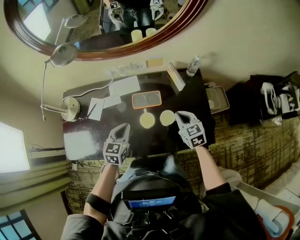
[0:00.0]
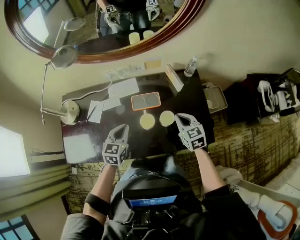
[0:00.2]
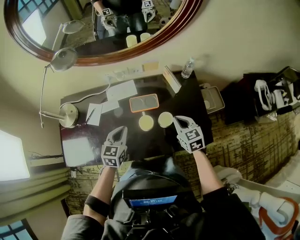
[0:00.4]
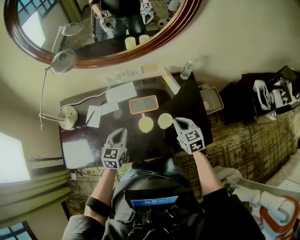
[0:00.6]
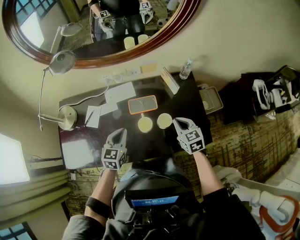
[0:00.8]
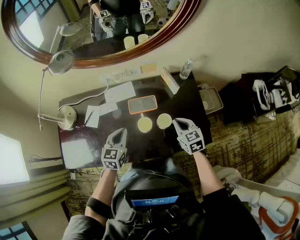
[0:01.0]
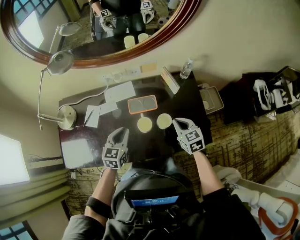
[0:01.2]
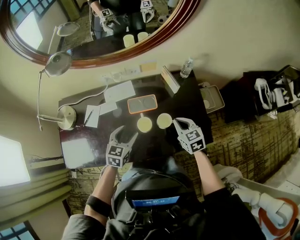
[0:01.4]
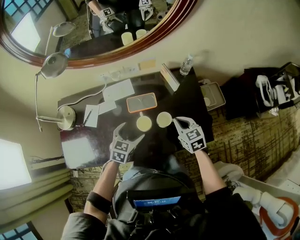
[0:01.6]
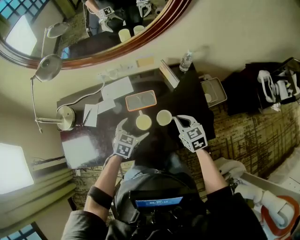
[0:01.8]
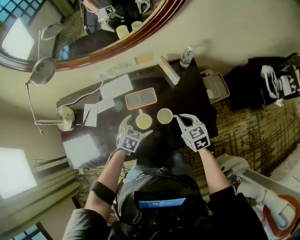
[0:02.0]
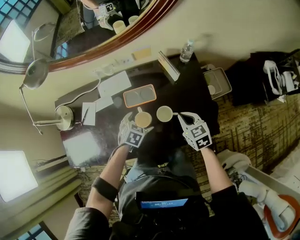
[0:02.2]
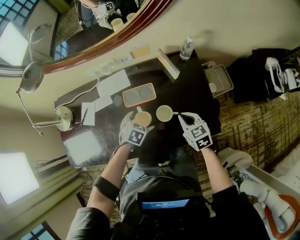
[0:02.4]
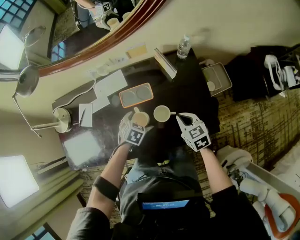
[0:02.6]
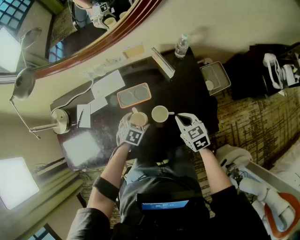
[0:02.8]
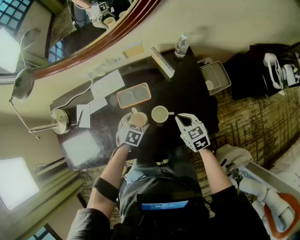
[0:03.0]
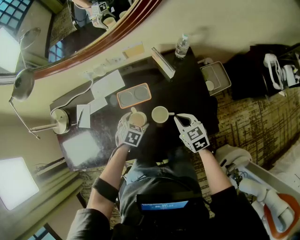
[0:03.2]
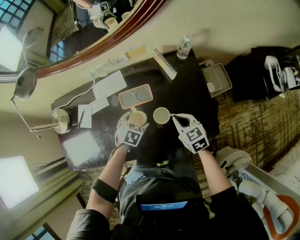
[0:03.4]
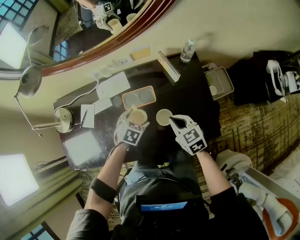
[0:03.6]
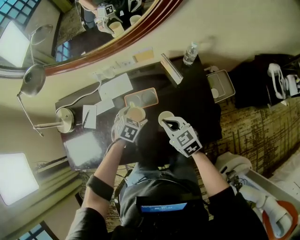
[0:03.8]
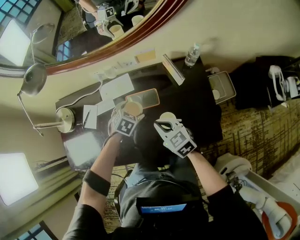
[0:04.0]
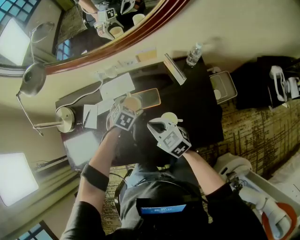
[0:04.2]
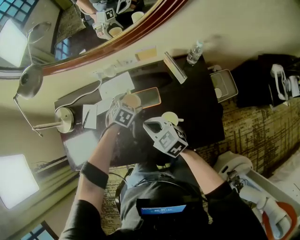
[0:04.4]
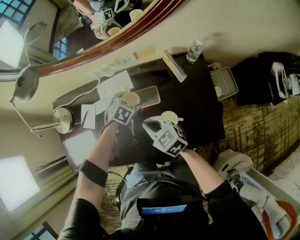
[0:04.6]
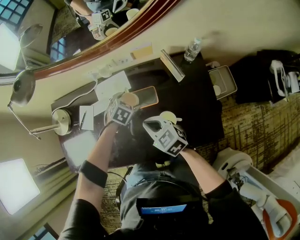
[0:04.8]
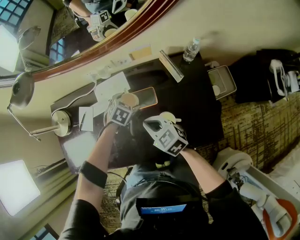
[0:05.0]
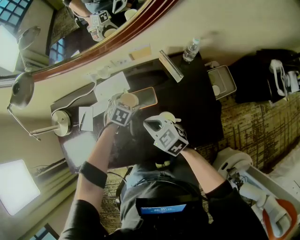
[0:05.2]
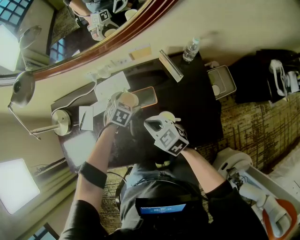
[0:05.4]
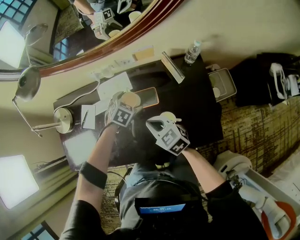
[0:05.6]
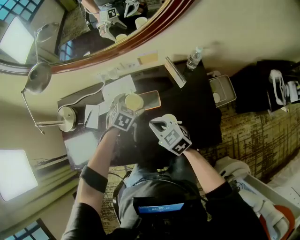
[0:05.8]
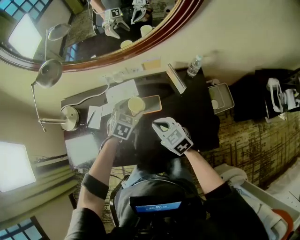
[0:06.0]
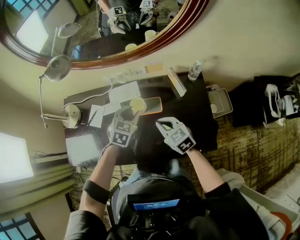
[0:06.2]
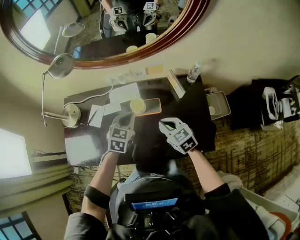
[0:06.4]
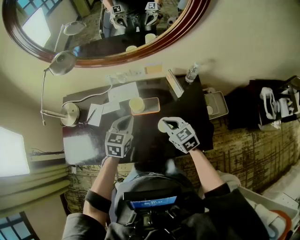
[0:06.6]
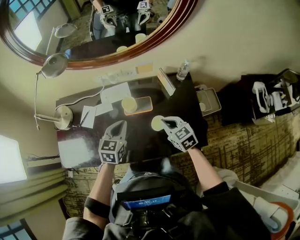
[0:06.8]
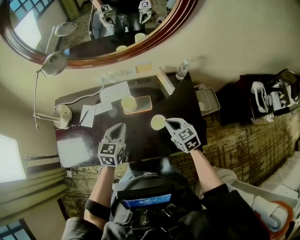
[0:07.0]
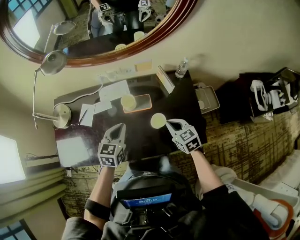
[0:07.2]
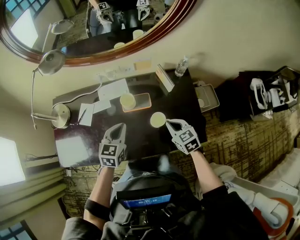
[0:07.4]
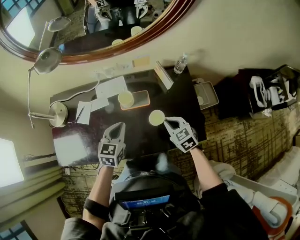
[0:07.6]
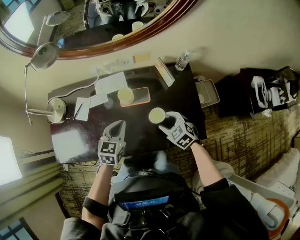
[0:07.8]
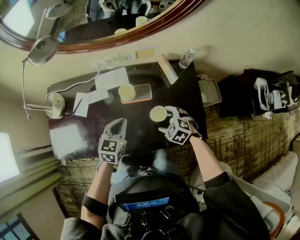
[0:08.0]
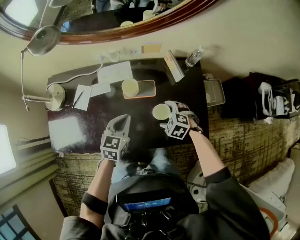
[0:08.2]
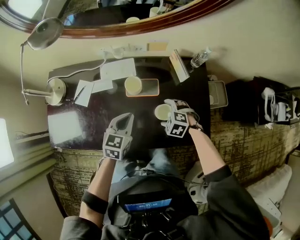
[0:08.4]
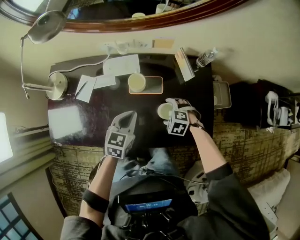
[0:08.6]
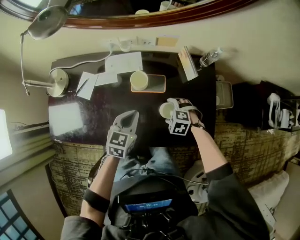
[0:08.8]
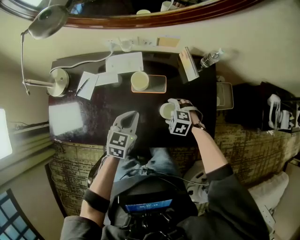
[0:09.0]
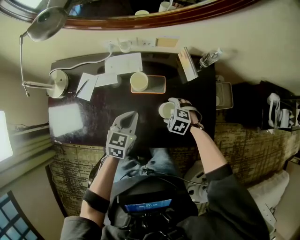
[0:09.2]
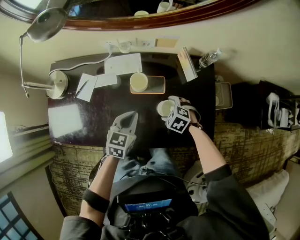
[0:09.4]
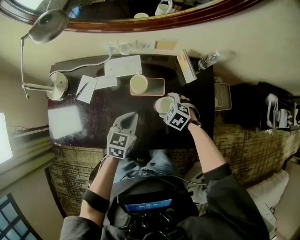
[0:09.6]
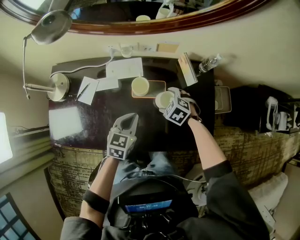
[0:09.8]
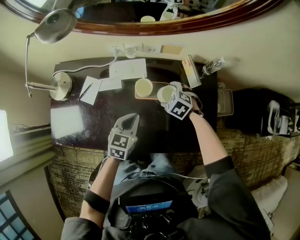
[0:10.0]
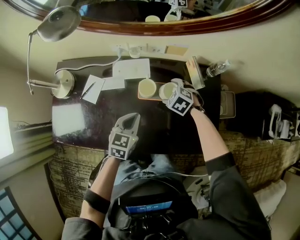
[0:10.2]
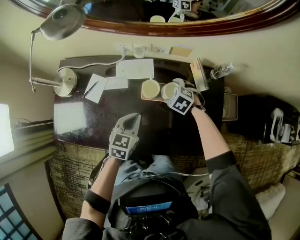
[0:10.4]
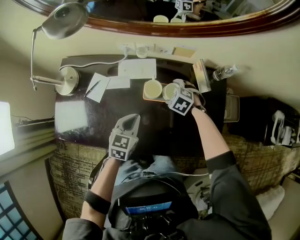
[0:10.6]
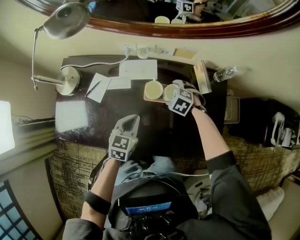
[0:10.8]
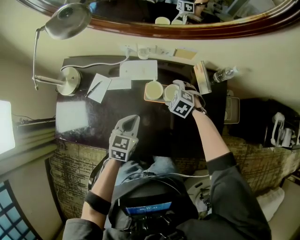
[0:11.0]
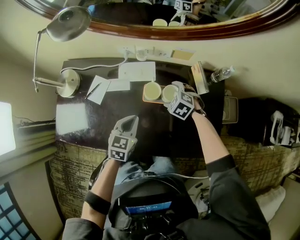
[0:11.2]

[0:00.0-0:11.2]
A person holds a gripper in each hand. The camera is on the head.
0:00.0 to 0:01.6: The left gripper goes about 5 cm to the right, and opens up.
0:01.6 to 0:03.2: The right gripper is displaced downward by roughly 5 cm. Meanwhile the left gripper moves downward and to the right, about 15 cm, and changes its angle by some 30 degrees.
0:03.2 to 0:04.8: The left gripper goes approximately 15 cm forward, while the right gripper goes approximately 20 cm to the left, and rotates some 20 degrees.
0:04.8 to 0:06.4: The right gripper is displaced to the right and upward by roughly 10 cm. The left gripper is displaced upward and backward by about 20 cm, changes its angle by roughly 30 degrees, and closes its fingers.
0:06.4 to 0:08.0: The left gripper goes about 5 cm backward; the right gripper moves downward, some 10 cm, changes its angle by about 40 degrees, and opens.
0:08.0 to 0:09.6: The right gripper moves some 10 cm.
0:09.6 to 0:11.2: The left gripper changes place by some 5 cm, while the right gripper shifts some 10 cm forward.

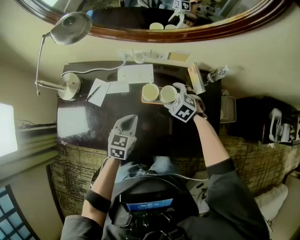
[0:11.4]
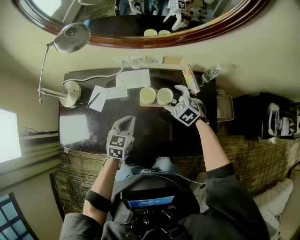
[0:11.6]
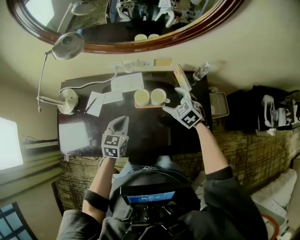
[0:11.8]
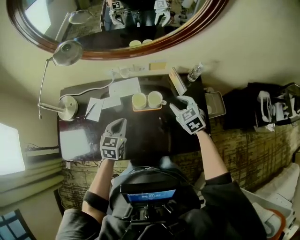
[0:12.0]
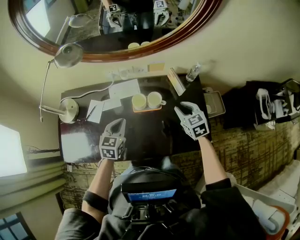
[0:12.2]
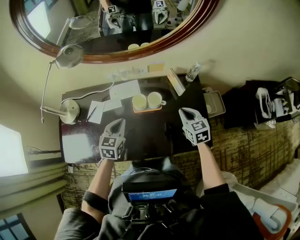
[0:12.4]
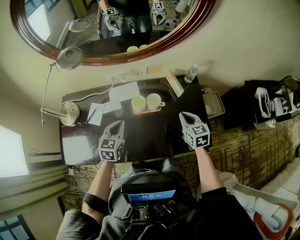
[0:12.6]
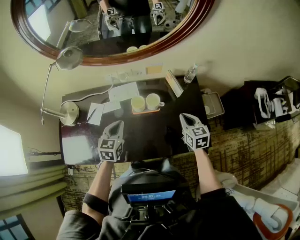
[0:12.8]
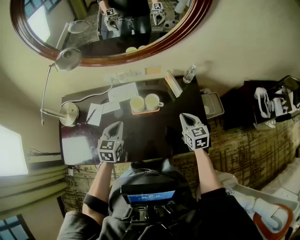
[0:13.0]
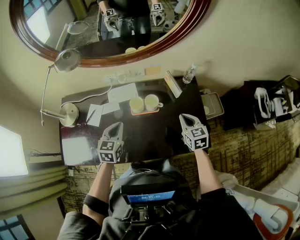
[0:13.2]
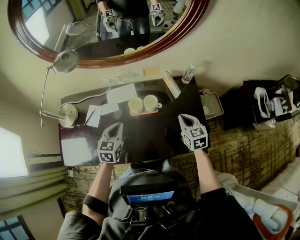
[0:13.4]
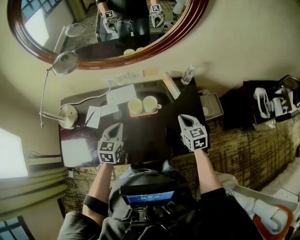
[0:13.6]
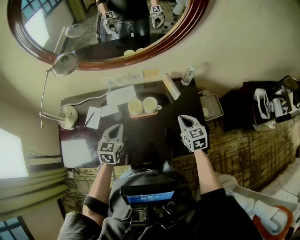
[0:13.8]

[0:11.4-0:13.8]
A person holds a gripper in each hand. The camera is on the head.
0:11.4 to 0:12.6: The right gripper shifts some 20 cm backward, upward and to the right, rotates around the line of its fingers by roughly 50 degrees, clockwise from behind, and closes its fingers. Meanwhile the left gripper moves upward, approximately 5 cm.
0:12.6 to 0:13.8: There are only small adjustments of the grippers.

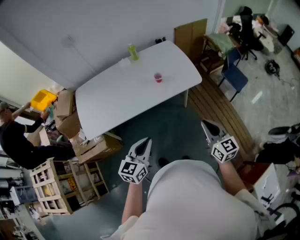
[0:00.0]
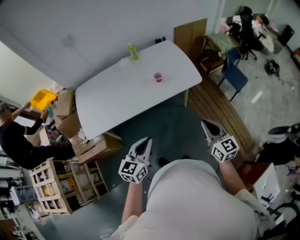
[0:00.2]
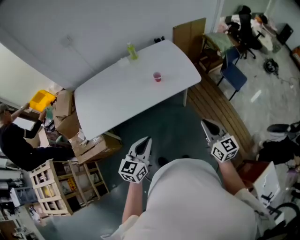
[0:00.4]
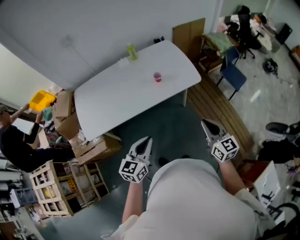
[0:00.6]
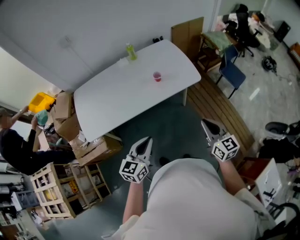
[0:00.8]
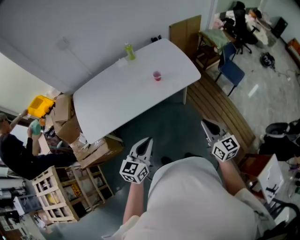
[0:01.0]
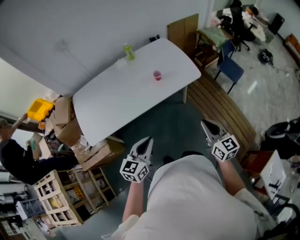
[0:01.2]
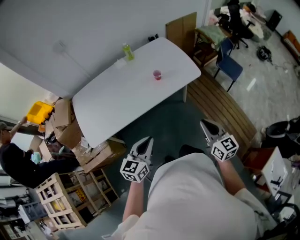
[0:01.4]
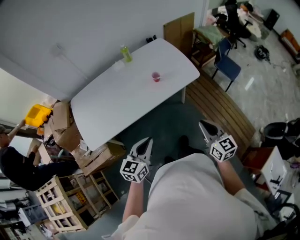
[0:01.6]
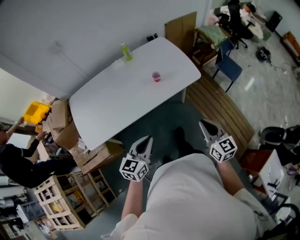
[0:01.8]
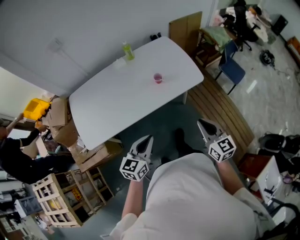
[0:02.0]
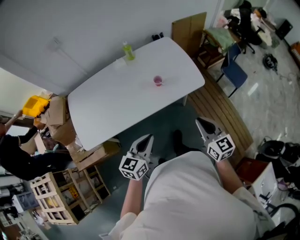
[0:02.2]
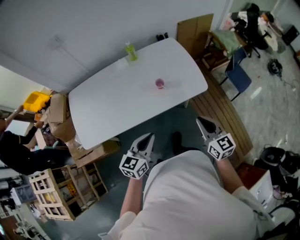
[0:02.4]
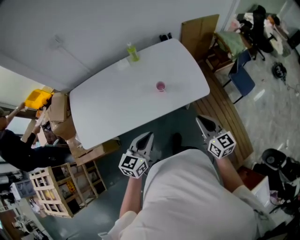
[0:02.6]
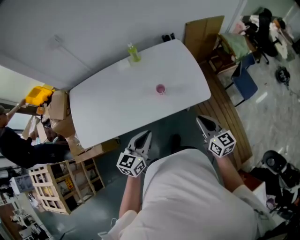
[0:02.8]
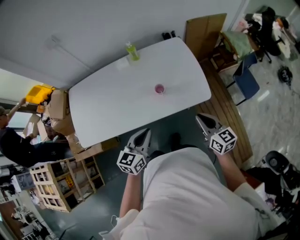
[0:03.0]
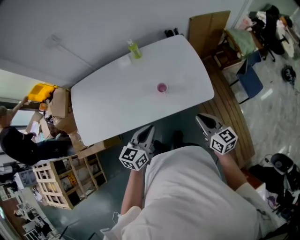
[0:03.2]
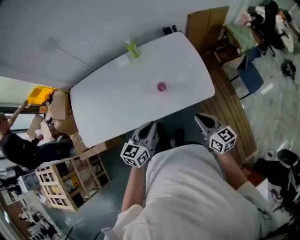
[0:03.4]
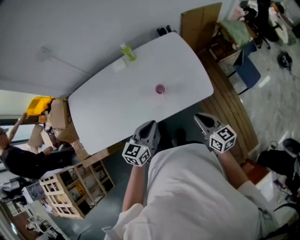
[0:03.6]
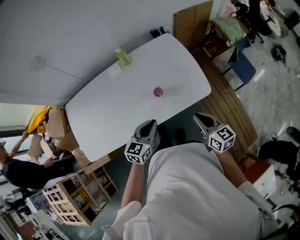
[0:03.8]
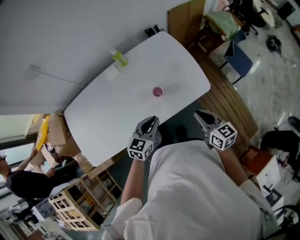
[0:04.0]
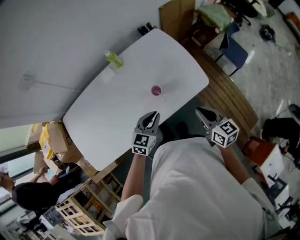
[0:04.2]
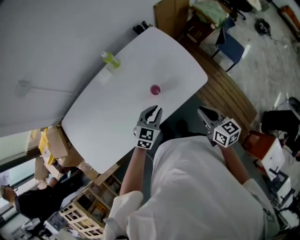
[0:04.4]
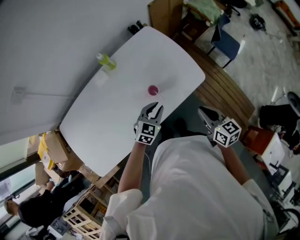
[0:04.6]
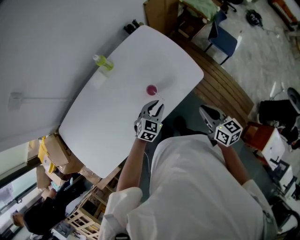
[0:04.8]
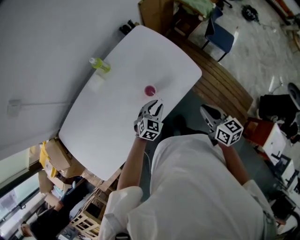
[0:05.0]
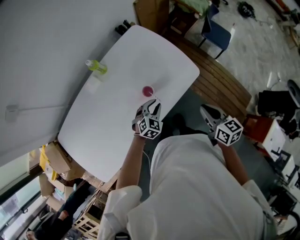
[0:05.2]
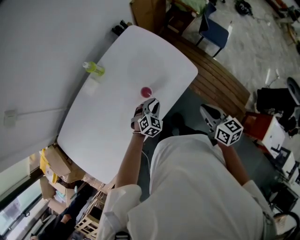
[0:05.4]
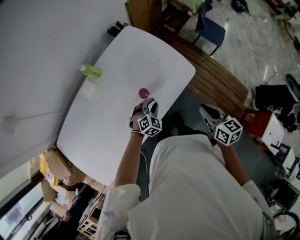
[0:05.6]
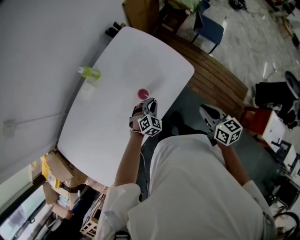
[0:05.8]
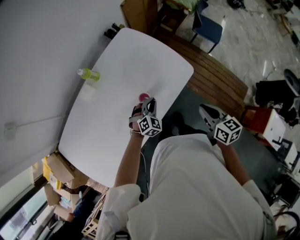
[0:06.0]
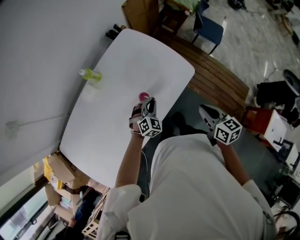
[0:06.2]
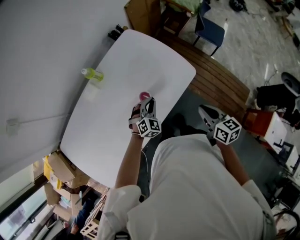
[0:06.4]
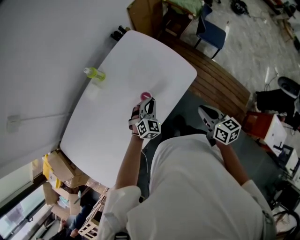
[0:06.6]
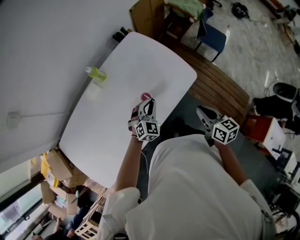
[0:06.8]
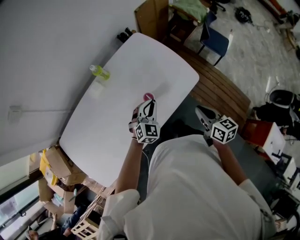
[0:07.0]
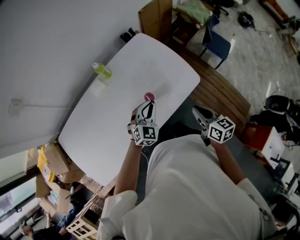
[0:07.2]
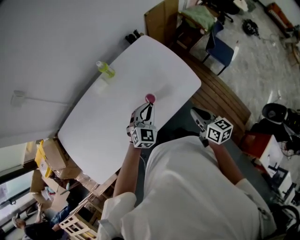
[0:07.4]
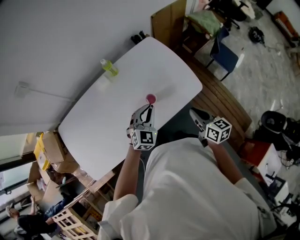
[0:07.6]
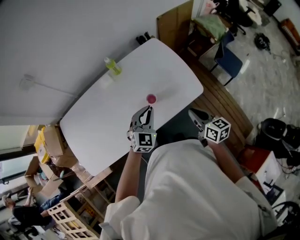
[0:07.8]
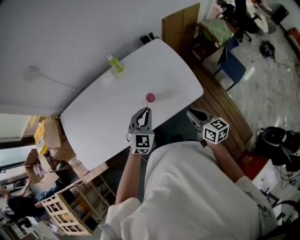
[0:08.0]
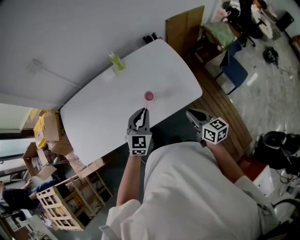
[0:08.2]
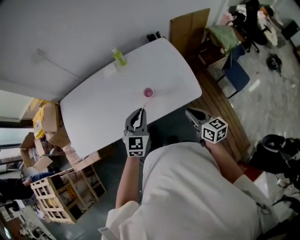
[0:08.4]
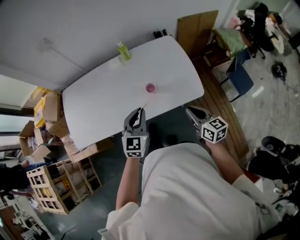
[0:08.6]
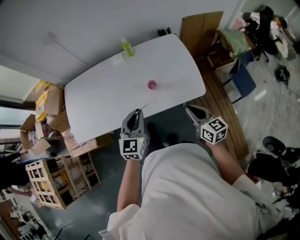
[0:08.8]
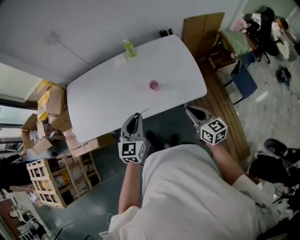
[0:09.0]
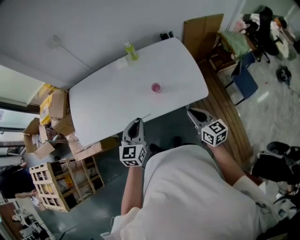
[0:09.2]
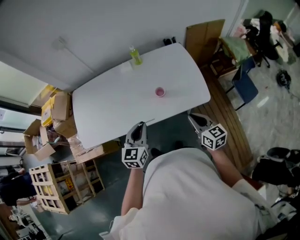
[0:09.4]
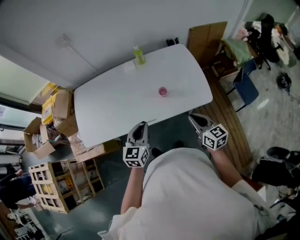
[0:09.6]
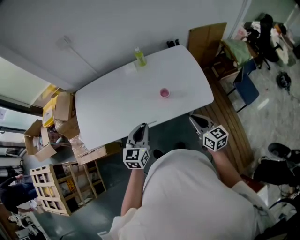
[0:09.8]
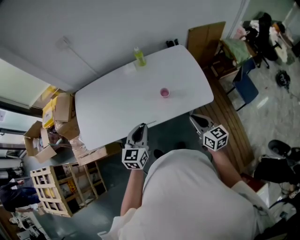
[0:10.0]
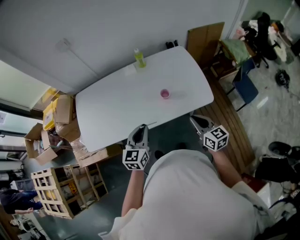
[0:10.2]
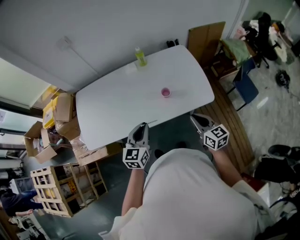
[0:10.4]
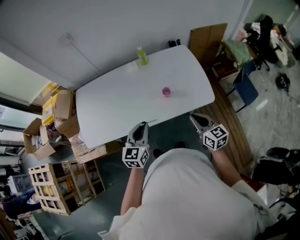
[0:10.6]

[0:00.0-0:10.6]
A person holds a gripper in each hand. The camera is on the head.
0:00.0 to 0:01.6: The grippers both shift to the left by roughly 5 cm.
0:01.6 to 0:03.0: The two grippers go some 25 cm forward. The right gripper swivels roughly 20 degrees.
0:03.0 to 0:04.6: The left gripper is displaced forward and downward by some 20 cm, and swivels about 40 degrees. The right gripper rotates approximately 20 degrees.
0:04.6 to 0:06.0: The left gripper travels downward by about 10 cm, and turns by some 30 degrees.
0:06.0 to 0:07.6: The right gripper ends up about 5 cm from where it was, while the left gripper moves upward, about 15 cm, and changes its angle by some 30 degrees.
0:07.6 to 0:09.0: The left gripper changes place by approximately 15 cm, and swivels approximately 40 degrees, while the right gripper swivels about 30 degrees.
0:09.0 to 0:10.6: Both grippers travel together to the left, some 5 cm.
